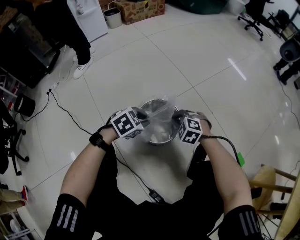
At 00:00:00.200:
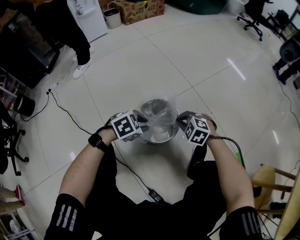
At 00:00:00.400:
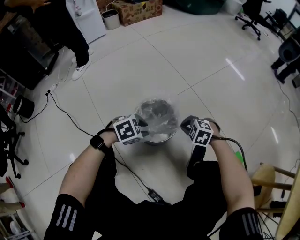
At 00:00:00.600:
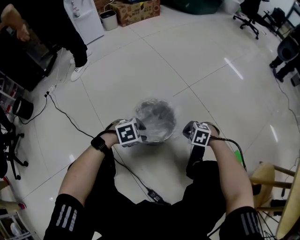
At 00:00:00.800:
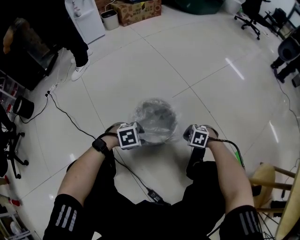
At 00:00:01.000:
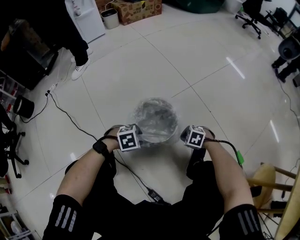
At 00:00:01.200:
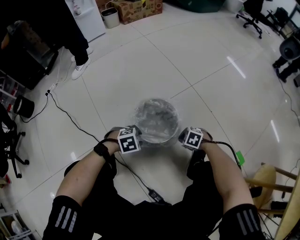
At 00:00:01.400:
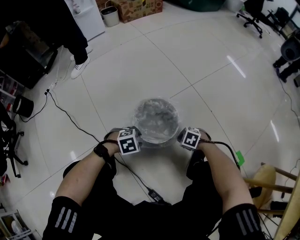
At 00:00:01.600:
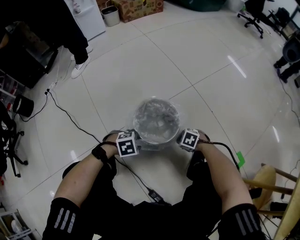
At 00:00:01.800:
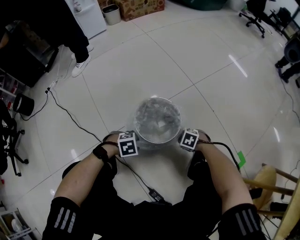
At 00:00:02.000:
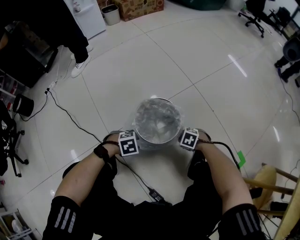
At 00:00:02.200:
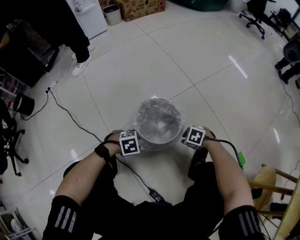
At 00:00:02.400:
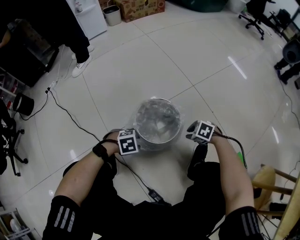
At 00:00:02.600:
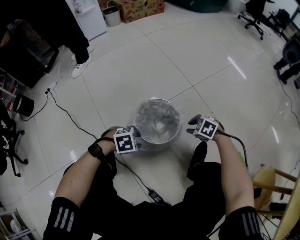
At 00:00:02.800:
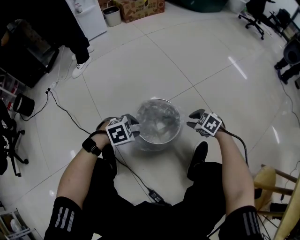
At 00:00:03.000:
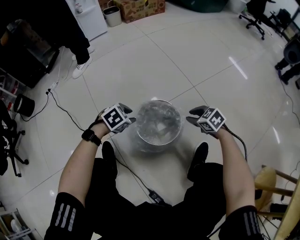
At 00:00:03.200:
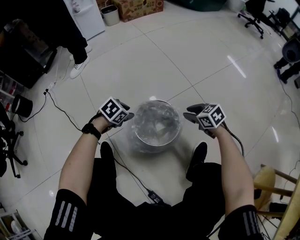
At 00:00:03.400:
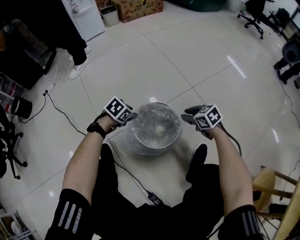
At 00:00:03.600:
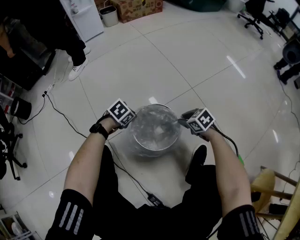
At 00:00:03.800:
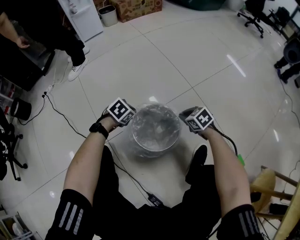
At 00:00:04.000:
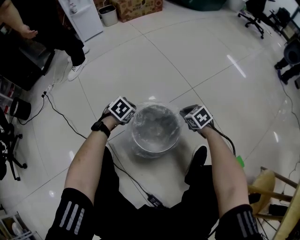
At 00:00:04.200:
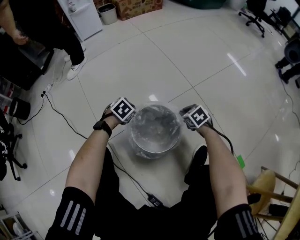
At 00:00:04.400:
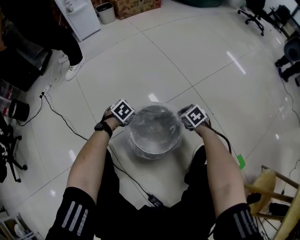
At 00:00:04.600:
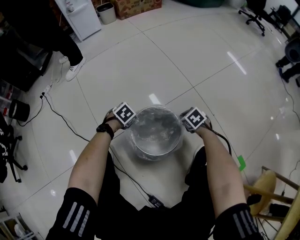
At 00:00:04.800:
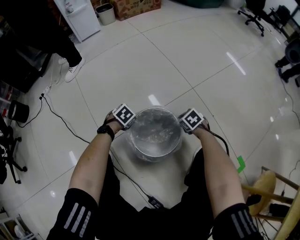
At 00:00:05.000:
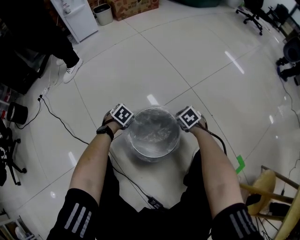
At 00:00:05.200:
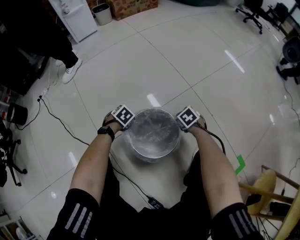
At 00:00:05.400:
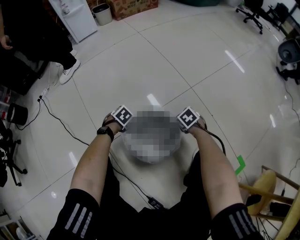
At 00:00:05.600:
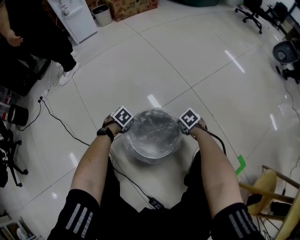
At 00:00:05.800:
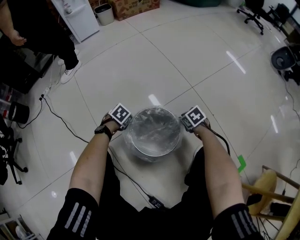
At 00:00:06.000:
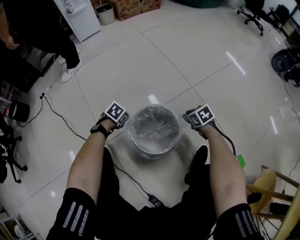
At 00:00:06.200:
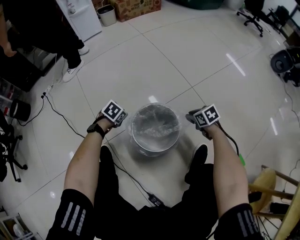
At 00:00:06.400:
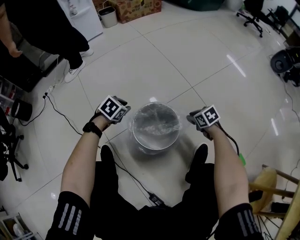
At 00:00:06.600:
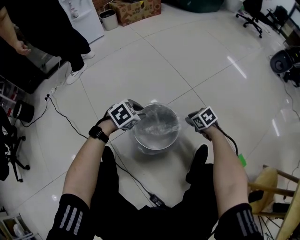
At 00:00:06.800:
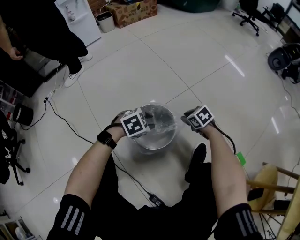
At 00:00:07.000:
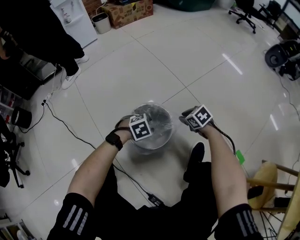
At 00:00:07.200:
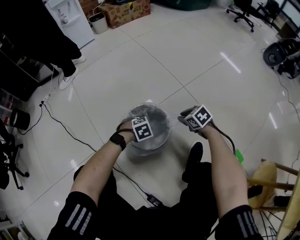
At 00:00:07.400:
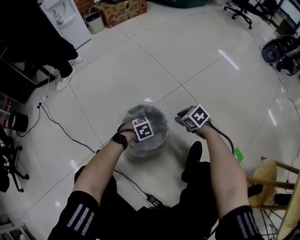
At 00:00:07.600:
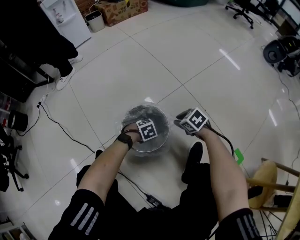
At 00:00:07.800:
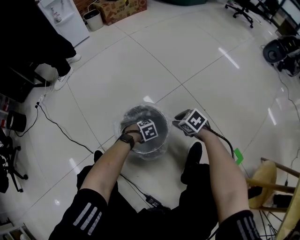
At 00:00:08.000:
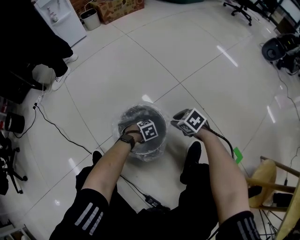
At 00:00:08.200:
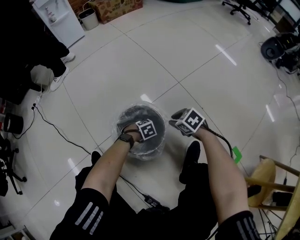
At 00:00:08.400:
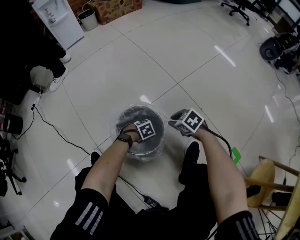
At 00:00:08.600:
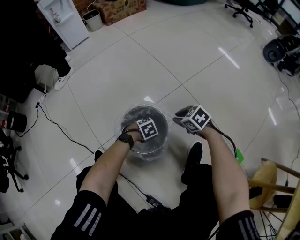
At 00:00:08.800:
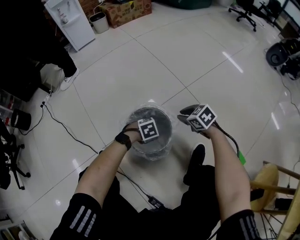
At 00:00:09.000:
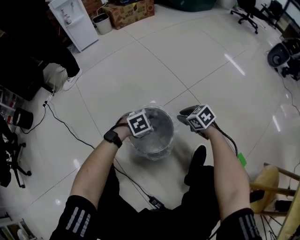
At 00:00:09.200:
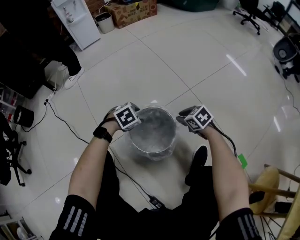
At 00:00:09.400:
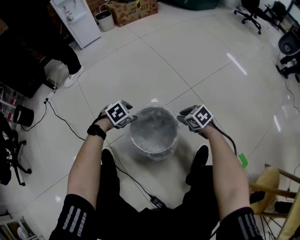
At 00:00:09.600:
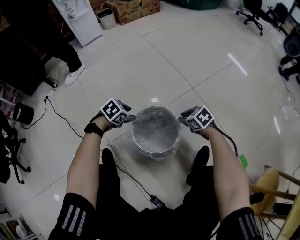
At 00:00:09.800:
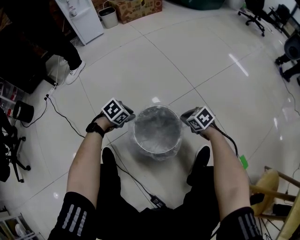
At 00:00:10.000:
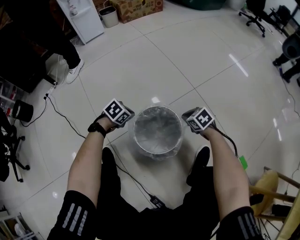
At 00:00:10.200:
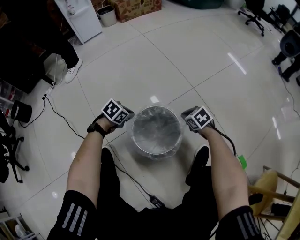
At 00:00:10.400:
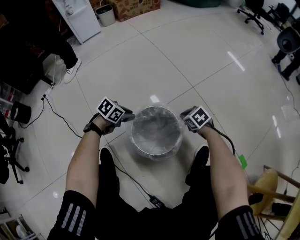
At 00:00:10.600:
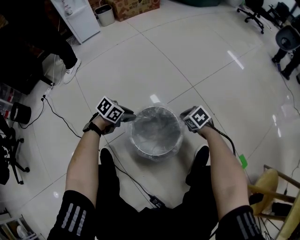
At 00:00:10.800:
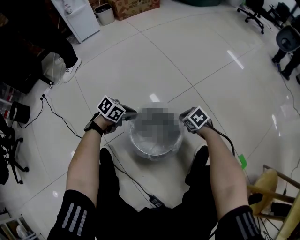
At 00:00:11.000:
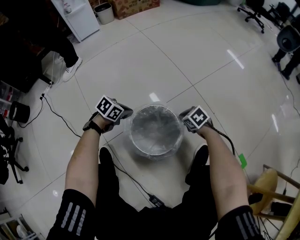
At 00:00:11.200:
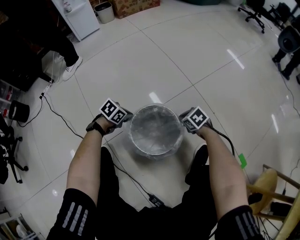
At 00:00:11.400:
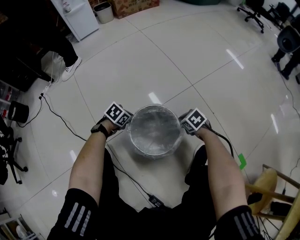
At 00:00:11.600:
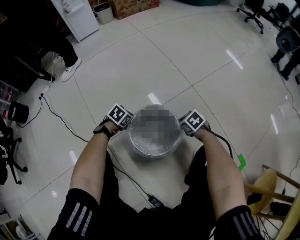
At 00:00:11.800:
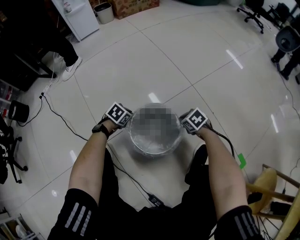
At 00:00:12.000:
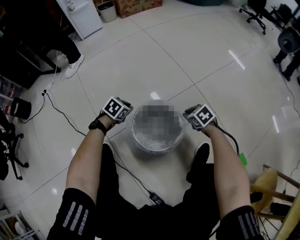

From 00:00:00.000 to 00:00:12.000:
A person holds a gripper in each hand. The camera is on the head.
From 00:00:00.000 to 00:00:01.600: Both grippers travel together downward, some 10 cm. The right gripper rotates some 40 degrees. Meanwhile the left gripper turns by some 20 degrees, and opens.
From 00:00:01.600 to 00:00:03.000: The right gripper moves approximately 20 cm, turns by some 30 degrees, and opens its fingers. Meanwhile the left gripper ends up about 15 cm from where it was, and turns by about 20 degrees.
From 00:00:03.000 to 00:00:04.400: The two grippers go roughly 10 cm downward. The right gripper closes its fingers, while the left gripper closes.
From 00:00:04.400 to 00:00:06.000: The right gripper opens its fingers.
From 00:00:06.000 to 00:00:07.600: The left gripper travels upward and back again, roughly 15 cm each way, turns by some 40 degrees, and opens up. Meanwhile the right gripper changes place by roughly 5 cm.
From 00:00:07.600 to 00:00:09.000: The right gripper ends up approximately 5 cm from where it was, while the left gripper moves upward, approximately 10 cm.
From 00:00:09.000 to 00:00:10.400: The left gripper changes place by roughly 15 cm, rotates approximately 40 degrees, and closes up; the right gripper goes about 5 cm downward, and closes.

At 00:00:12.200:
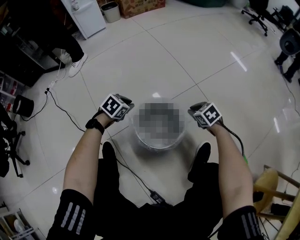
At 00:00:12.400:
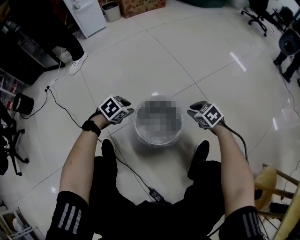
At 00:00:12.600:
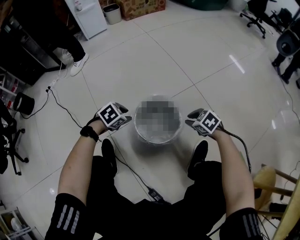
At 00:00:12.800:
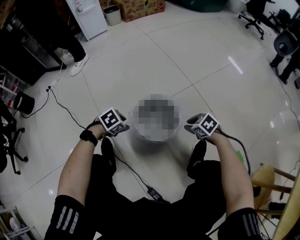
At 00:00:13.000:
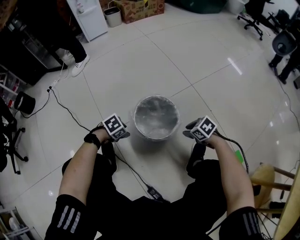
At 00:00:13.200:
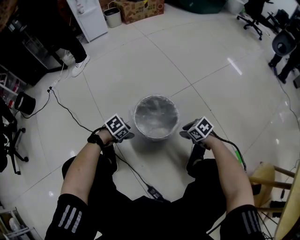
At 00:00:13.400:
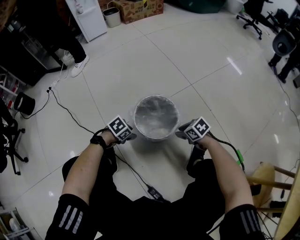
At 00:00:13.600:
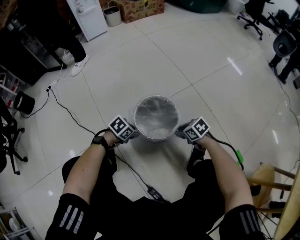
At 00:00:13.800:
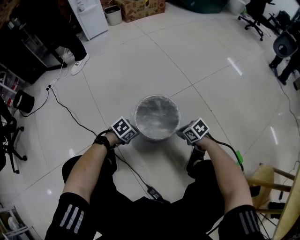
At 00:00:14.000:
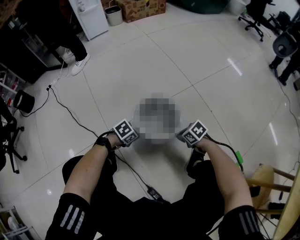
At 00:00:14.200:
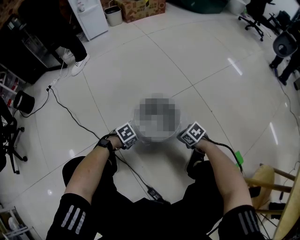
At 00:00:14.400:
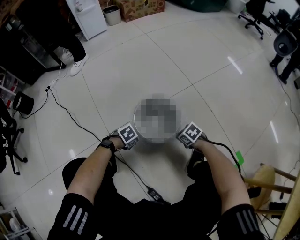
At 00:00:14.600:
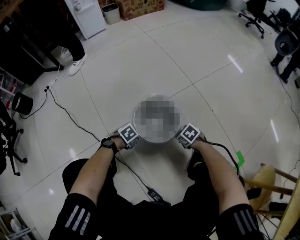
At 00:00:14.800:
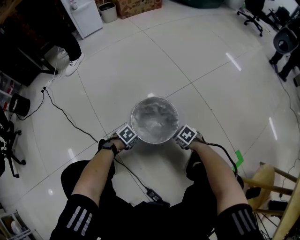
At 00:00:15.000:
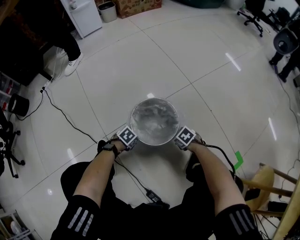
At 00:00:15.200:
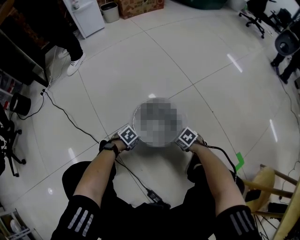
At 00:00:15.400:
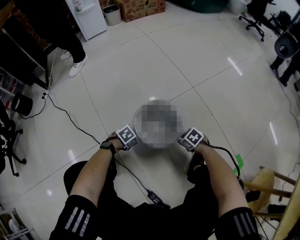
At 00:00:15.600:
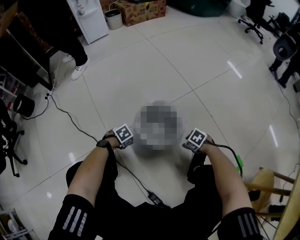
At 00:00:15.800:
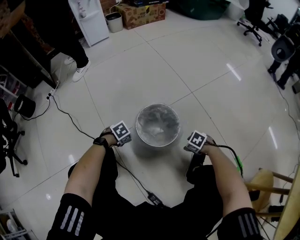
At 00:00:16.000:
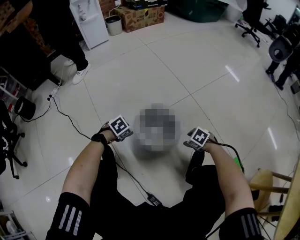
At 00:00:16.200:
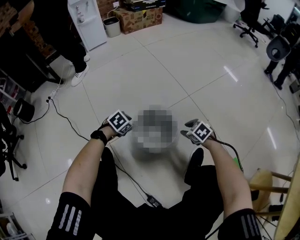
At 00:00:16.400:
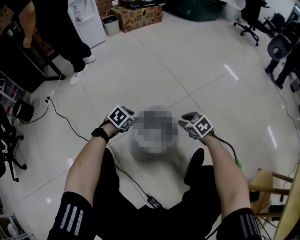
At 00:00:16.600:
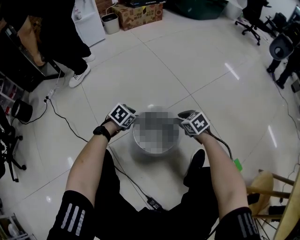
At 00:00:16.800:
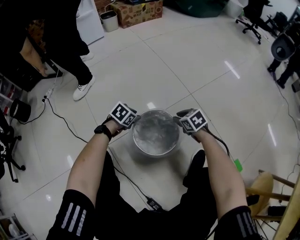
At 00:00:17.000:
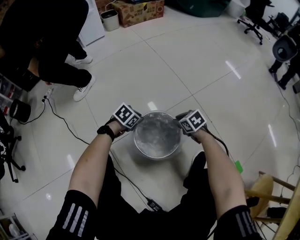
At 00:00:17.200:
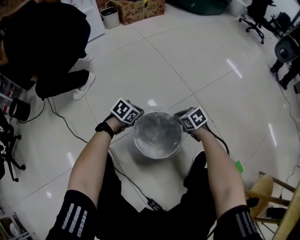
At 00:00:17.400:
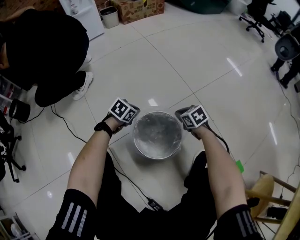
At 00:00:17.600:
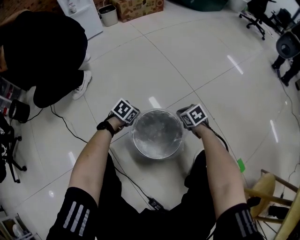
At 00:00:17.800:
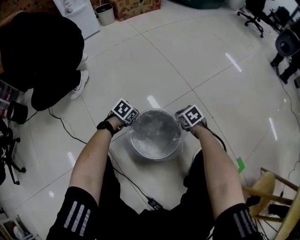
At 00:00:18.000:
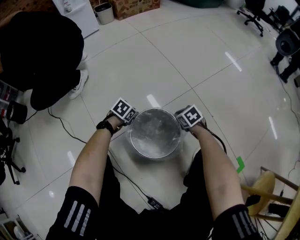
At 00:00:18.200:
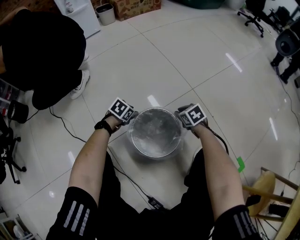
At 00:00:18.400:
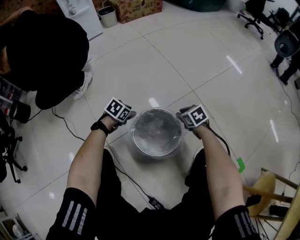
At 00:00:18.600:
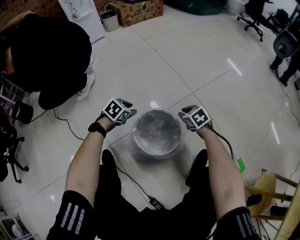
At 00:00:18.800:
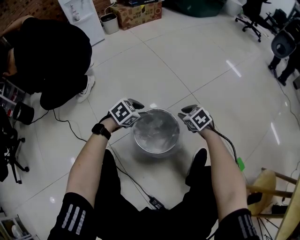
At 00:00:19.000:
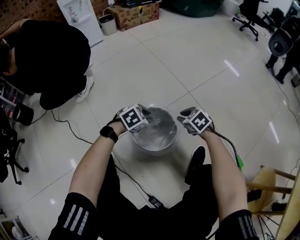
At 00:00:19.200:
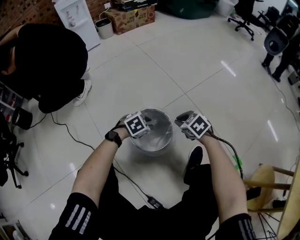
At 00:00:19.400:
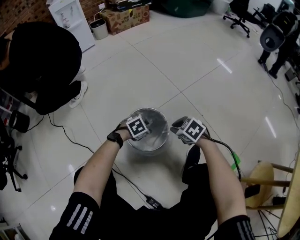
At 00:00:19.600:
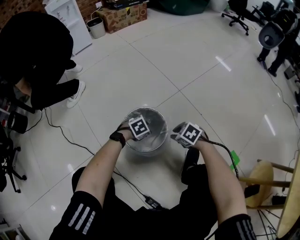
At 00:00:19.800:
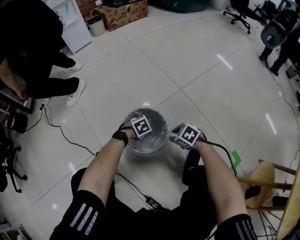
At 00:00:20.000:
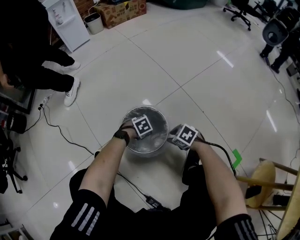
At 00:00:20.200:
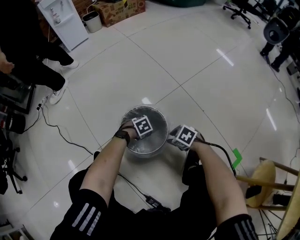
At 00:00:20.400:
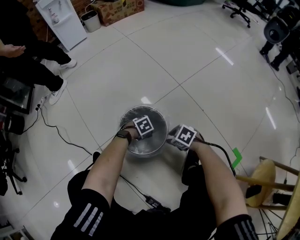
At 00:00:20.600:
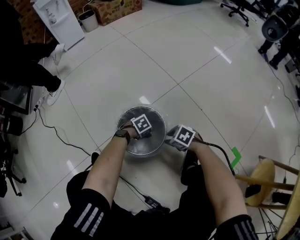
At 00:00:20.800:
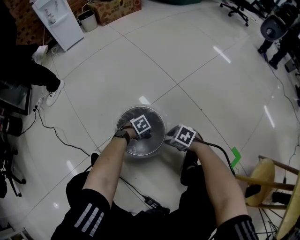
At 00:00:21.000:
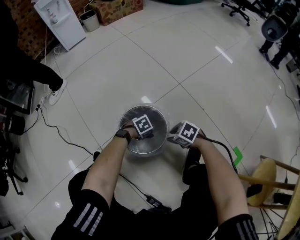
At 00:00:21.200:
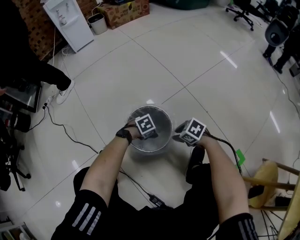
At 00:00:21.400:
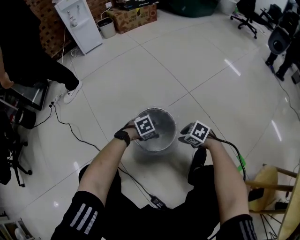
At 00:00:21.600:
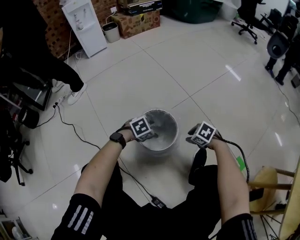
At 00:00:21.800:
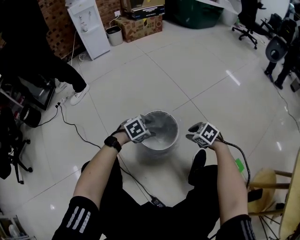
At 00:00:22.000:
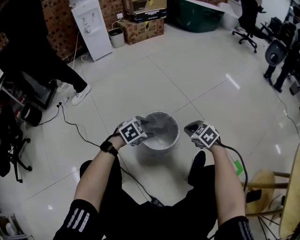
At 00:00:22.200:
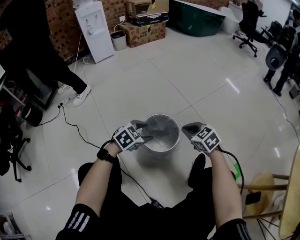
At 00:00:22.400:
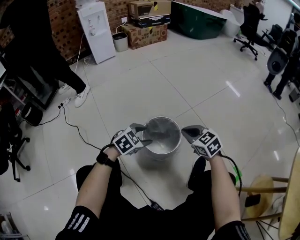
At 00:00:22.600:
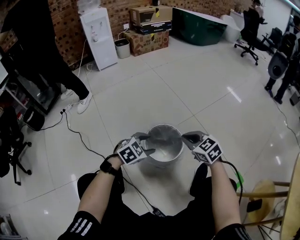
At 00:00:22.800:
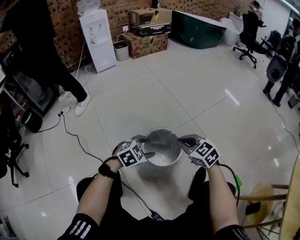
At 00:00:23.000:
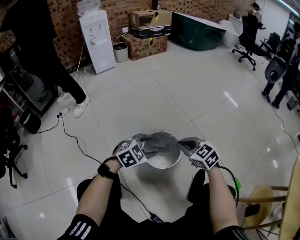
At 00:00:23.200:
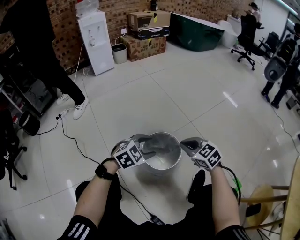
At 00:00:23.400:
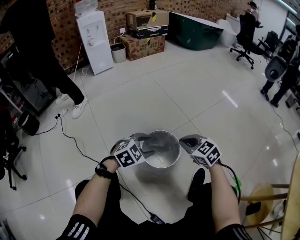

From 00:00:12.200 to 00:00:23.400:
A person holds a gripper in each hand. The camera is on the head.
From 00:00:12.200 to 00:00:13.800: The right gripper moves approximately 15 cm. The left gripper shifts by roughly 20 cm, and opens, then closes once more.
From 00:00:13.800 to 00:00:15.400: Both grippers travel together downward, some 5 cm. The right gripper opens up, while the left gripper opens up.
From 00:00:15.400 to 00:00:17.000: The left gripper shifts by about 20 cm. Meanwhile the right gripper shifts by about 20 cm, and opens and closes again.
From 00:00:17.000 to 00:00:18.600: The left gripper ends up some 5 cm from where it was; the right gripper closes, then reopens.
From 00:00:18.600 to 00:00:20.200: The right gripper ends up some 15 cm from where it was, and changes its angle by approximately 20 degrees; the left gripper shifts by roughly 25 cm, and swivels approximately 30 degrees.
From 00:00:20.200 to 00:00:21.800: The right gripper heads upward, covering some 10 cm, while the left gripper travels upward by approximately 20 cm, and swivels some 20 degrees.
From 00:00:21.800 to 00:00:23.400: The two grippers go some 10 cm upward. The right gripper changes its angle by some 30 degrees, and closes.
